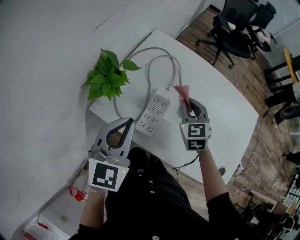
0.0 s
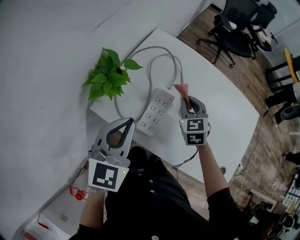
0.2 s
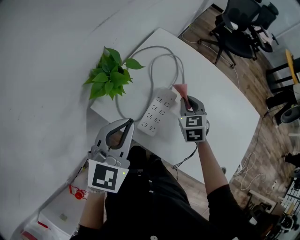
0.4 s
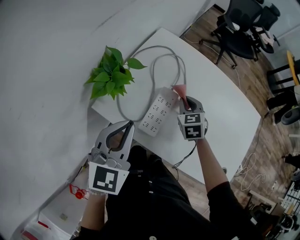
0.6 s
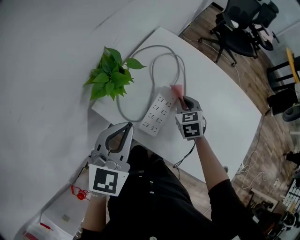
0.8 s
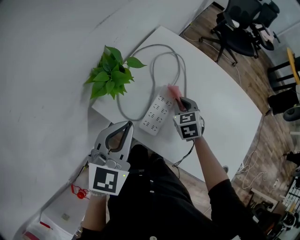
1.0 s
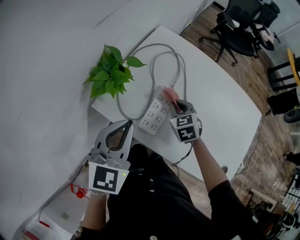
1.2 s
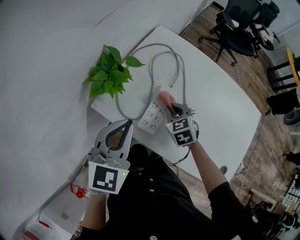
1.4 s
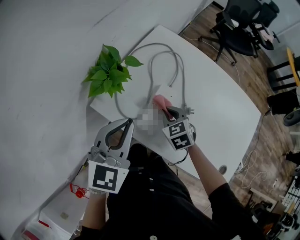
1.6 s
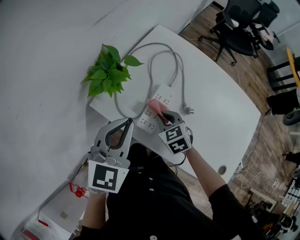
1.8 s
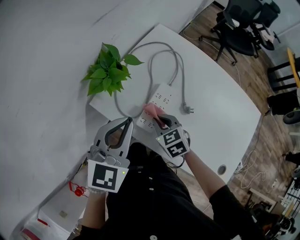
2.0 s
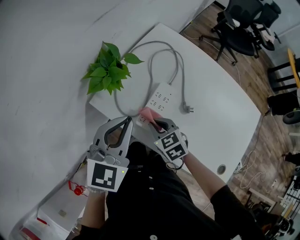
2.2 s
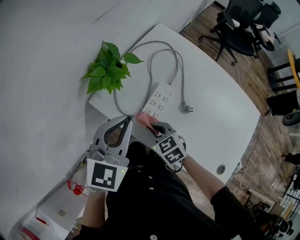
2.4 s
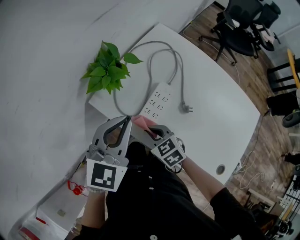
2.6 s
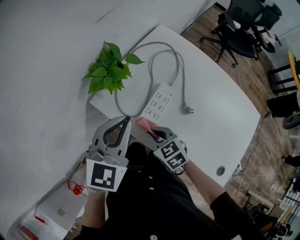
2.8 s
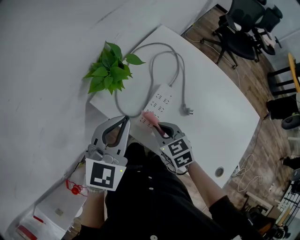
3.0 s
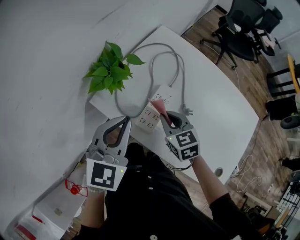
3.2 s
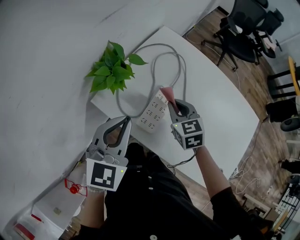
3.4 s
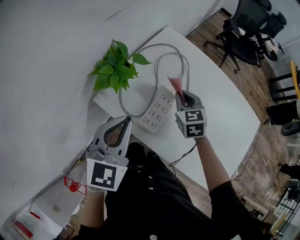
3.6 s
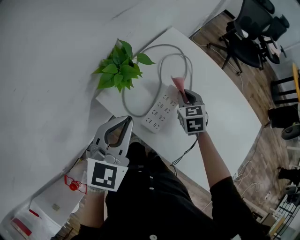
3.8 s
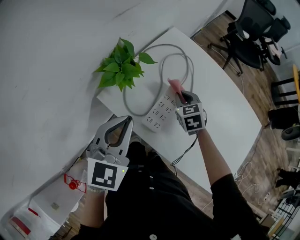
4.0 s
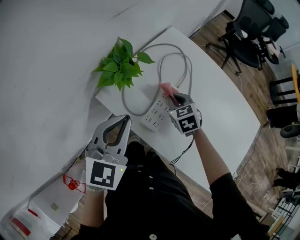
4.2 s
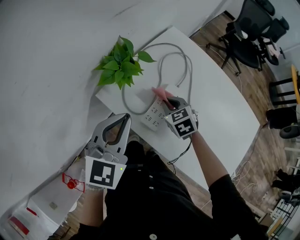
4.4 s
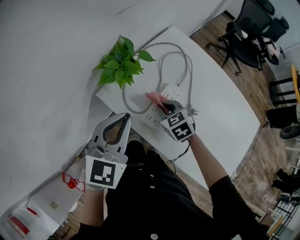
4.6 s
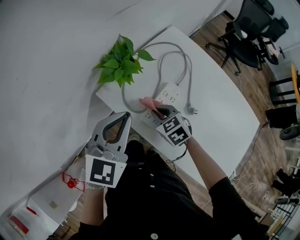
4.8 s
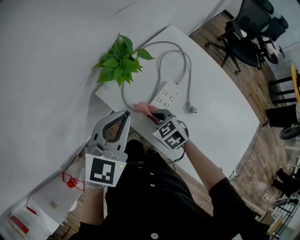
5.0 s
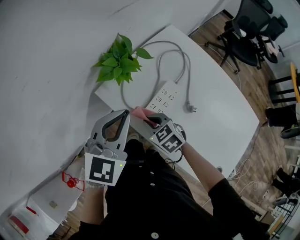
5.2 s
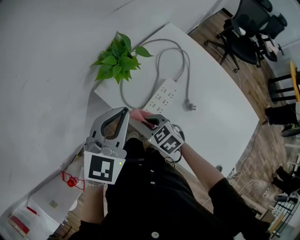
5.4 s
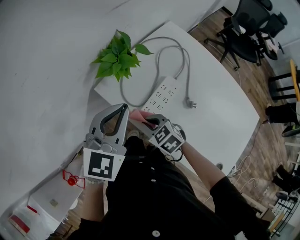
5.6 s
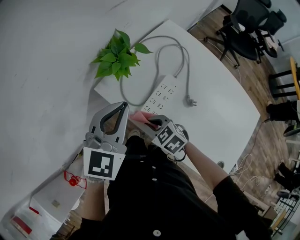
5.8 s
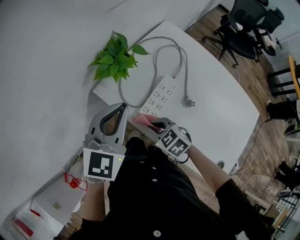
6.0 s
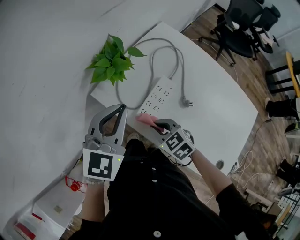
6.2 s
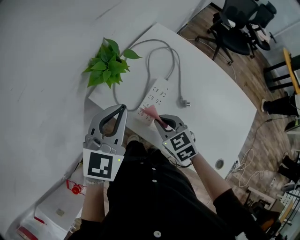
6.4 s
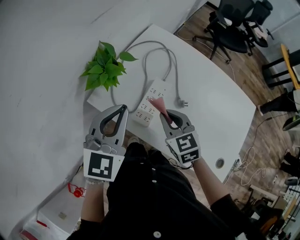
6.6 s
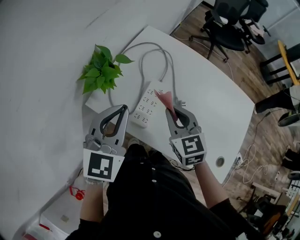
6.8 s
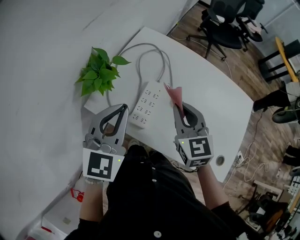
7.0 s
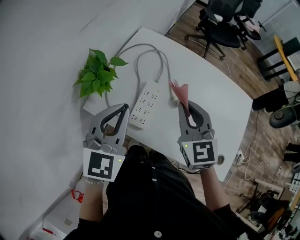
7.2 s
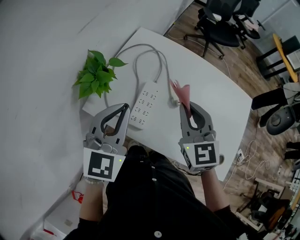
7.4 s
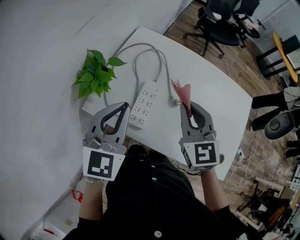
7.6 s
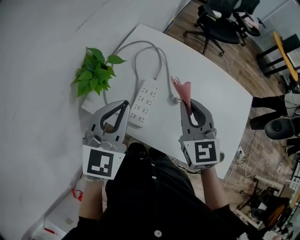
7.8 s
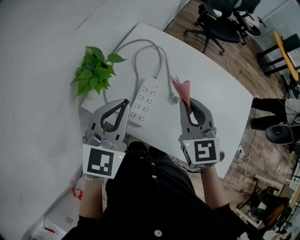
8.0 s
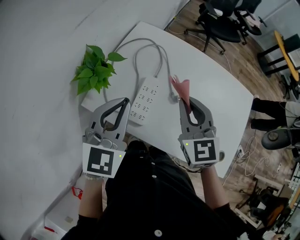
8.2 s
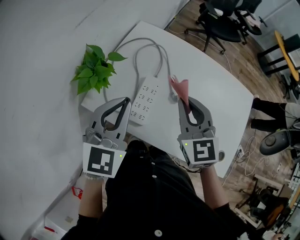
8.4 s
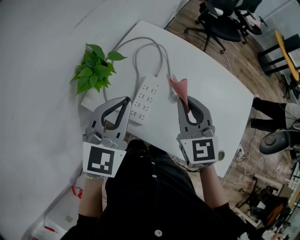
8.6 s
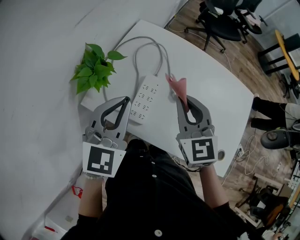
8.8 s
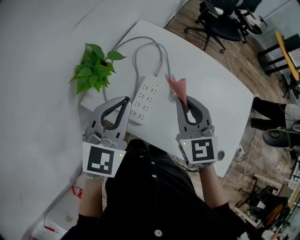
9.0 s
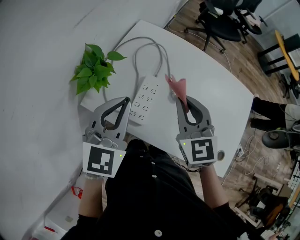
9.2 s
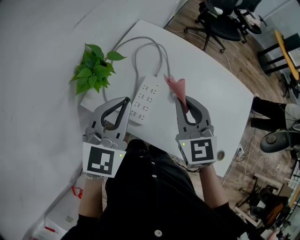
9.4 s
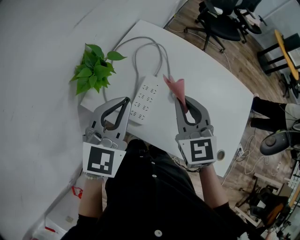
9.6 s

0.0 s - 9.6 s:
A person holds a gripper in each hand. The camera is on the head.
0.0 s - 1.6 s: The right gripper shifts about 15 cm downward, to the left and backward, and rotates roughly 20 degrees.
1.6 s - 3.2 s: The right gripper moves upward, approximately 5 cm, and reaches approximately 10 cm backward, then returns.
3.2 s - 4.8 s: The right gripper goes roughly 10 cm to the left and downward, and changes its angle by roughly 20 degrees.
4.8 s - 6.4 s: The right gripper goes approximately 5 cm backward.
6.4 s - 8.0 s: The left gripper shifts by some 5 cm; the right gripper travels upward and to the right by some 20 cm, and turns by some 40 degrees.
8.0 s - 9.6 s: There are only small adjustments of the grippers.

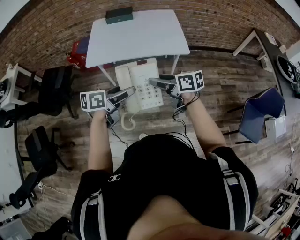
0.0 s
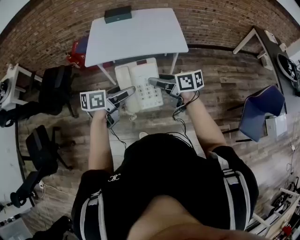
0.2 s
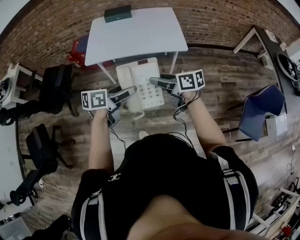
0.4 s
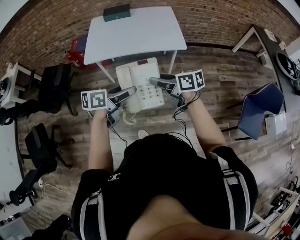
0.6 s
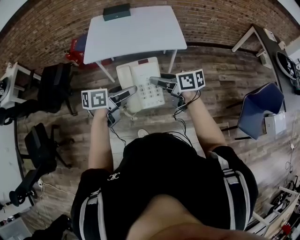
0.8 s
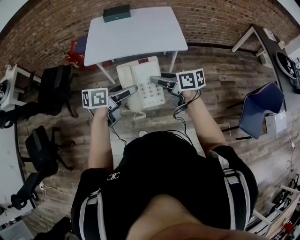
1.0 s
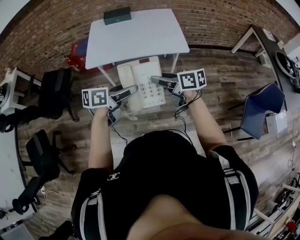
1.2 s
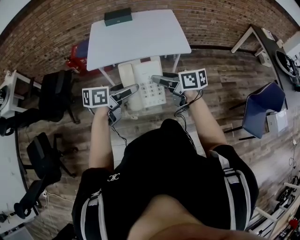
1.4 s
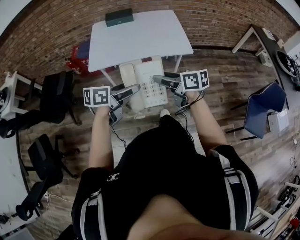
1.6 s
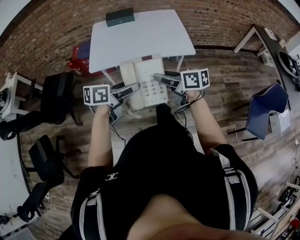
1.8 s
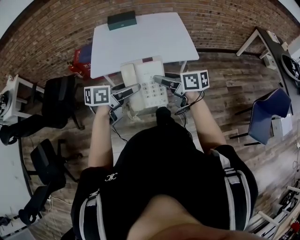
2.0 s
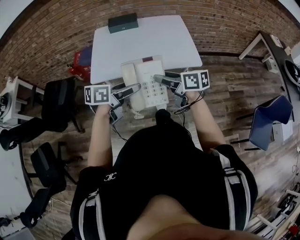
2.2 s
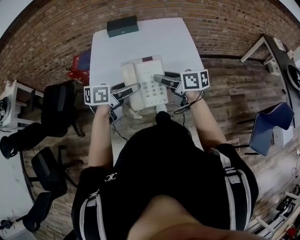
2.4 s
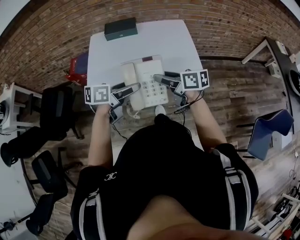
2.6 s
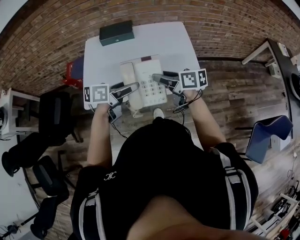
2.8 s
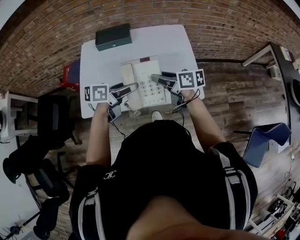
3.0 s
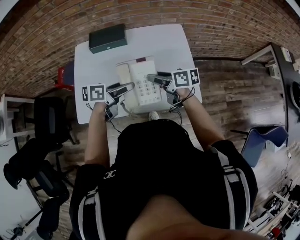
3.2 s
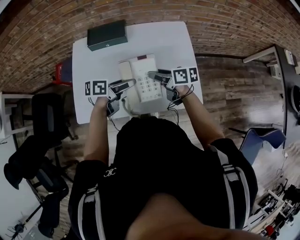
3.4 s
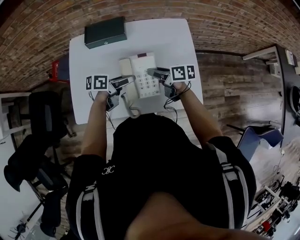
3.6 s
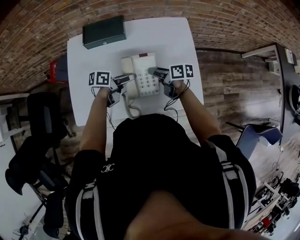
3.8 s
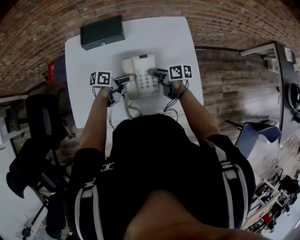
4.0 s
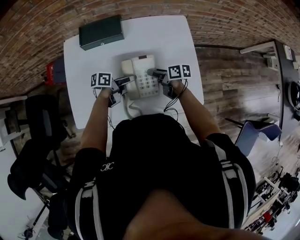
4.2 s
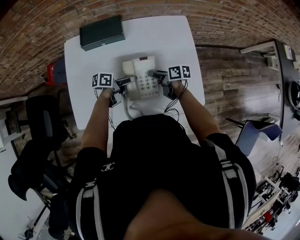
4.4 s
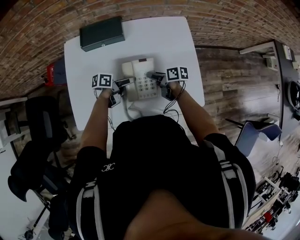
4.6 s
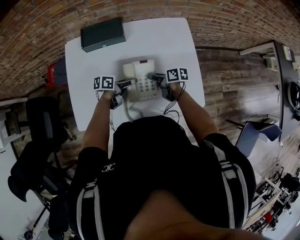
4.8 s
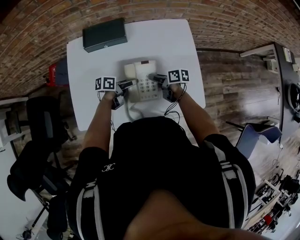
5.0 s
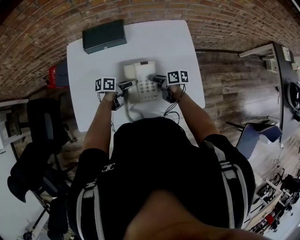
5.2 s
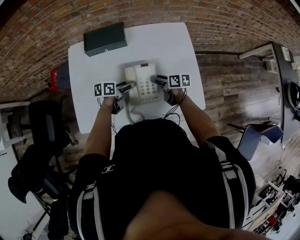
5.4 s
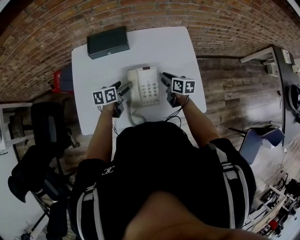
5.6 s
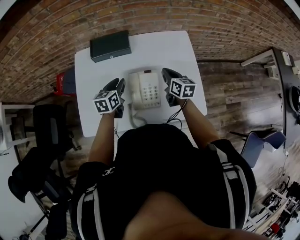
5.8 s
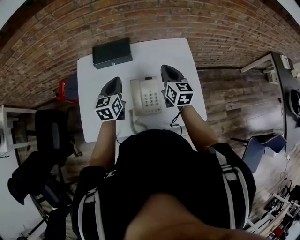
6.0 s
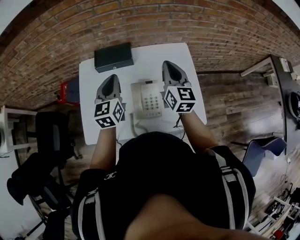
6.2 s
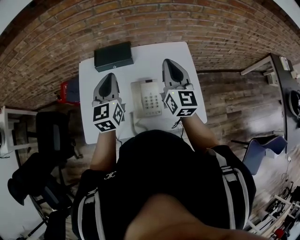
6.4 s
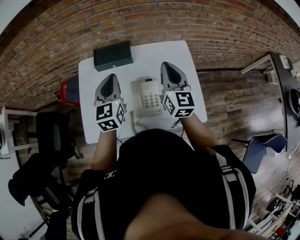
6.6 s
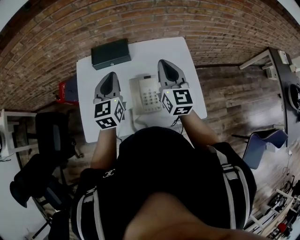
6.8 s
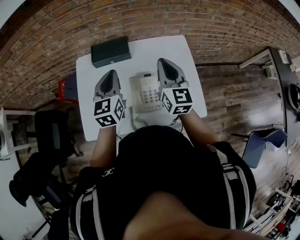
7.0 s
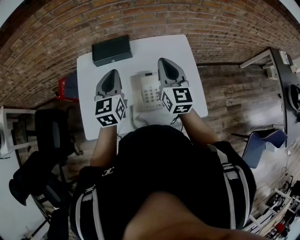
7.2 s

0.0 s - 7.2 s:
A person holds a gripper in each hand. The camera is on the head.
0.0 s - 1.4 s: The grippers make only small movements.
1.4 s - 2.8 s: The grippers both shift forward by approximately 35 cm.
2.8 s - 4.4 s: The left gripper changes place by roughly 30 cm, and changes its angle by roughly 30 degrees. The right gripper heads downward, covering roughly 20 cm, and rotates about 30 degrees.
4.4 s - 5.8 s: Both grippers travel together upward, some 10 cm. The right gripper rotates about 40 degrees, and closes its fingers; the left gripper turns by roughly 50 degrees, and closes its fingers.
5.8 s - 7.2 s: Both grippers travel together upward, about 20 cm. The left gripper turns by approximately 30 degrees. Meanwhile the right gripper rotates some 30 degrees.

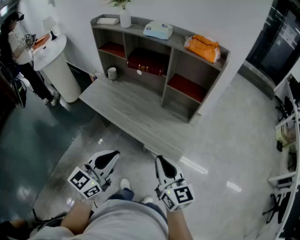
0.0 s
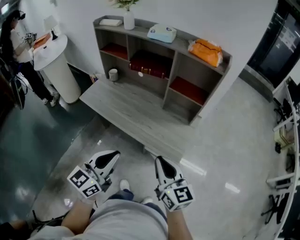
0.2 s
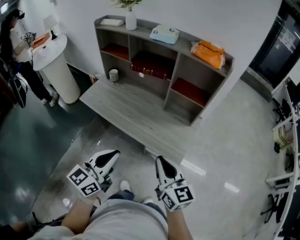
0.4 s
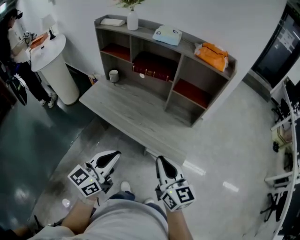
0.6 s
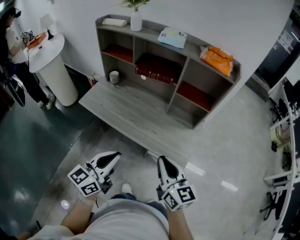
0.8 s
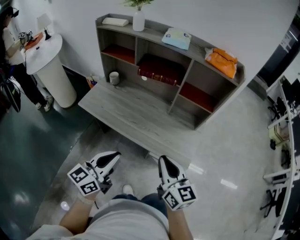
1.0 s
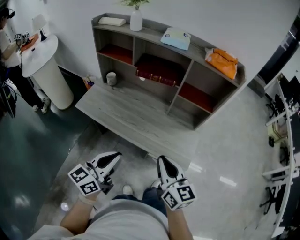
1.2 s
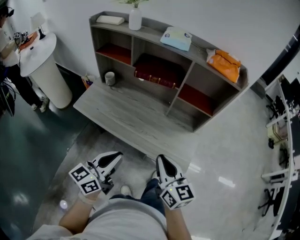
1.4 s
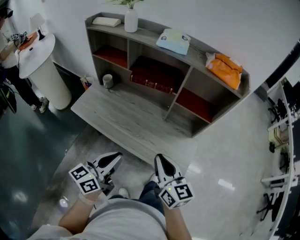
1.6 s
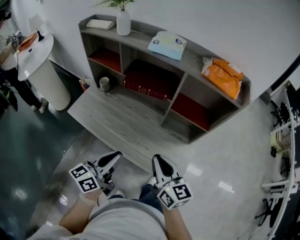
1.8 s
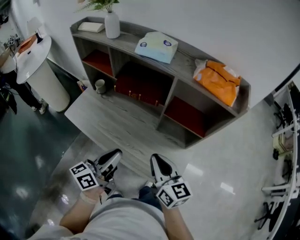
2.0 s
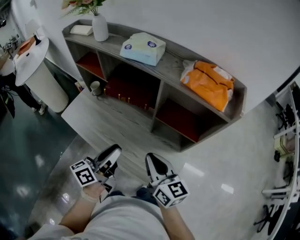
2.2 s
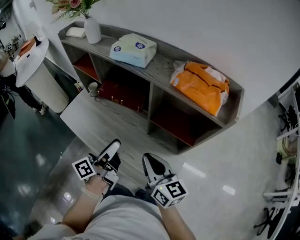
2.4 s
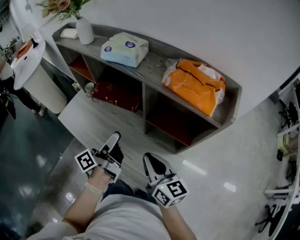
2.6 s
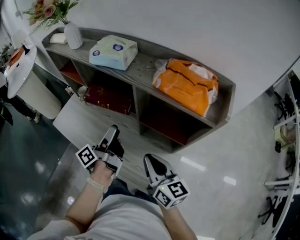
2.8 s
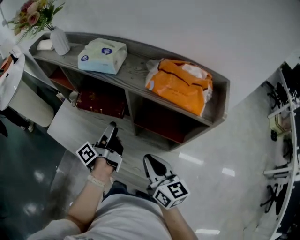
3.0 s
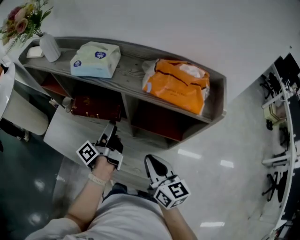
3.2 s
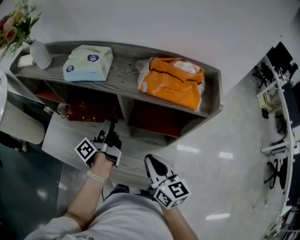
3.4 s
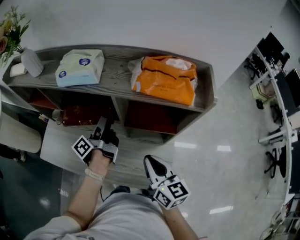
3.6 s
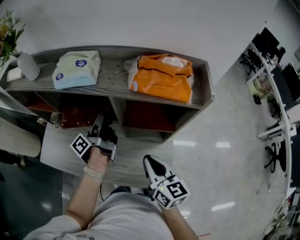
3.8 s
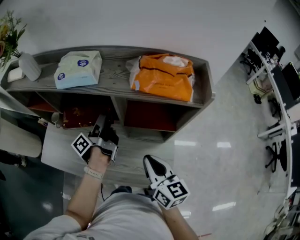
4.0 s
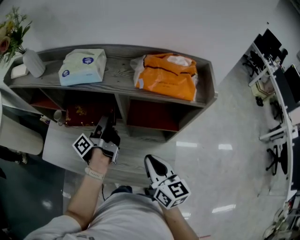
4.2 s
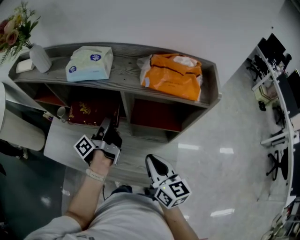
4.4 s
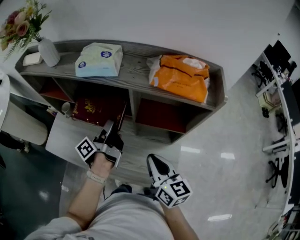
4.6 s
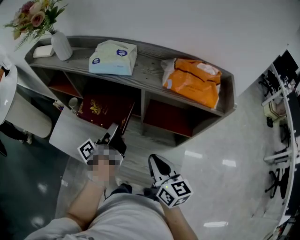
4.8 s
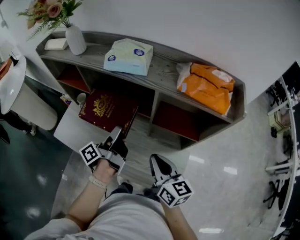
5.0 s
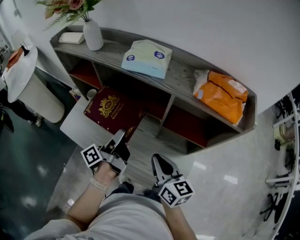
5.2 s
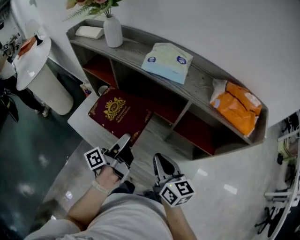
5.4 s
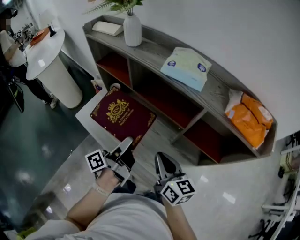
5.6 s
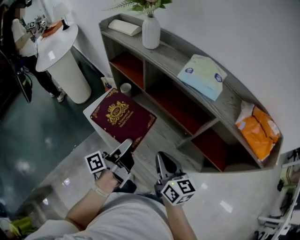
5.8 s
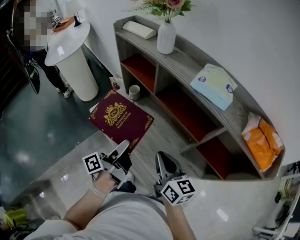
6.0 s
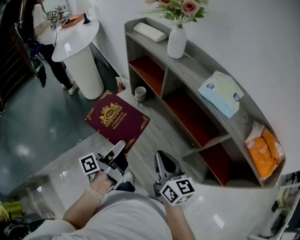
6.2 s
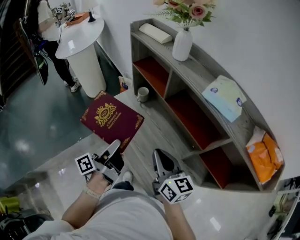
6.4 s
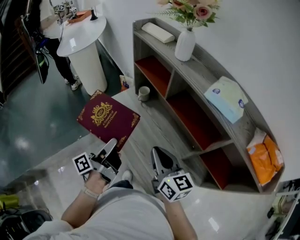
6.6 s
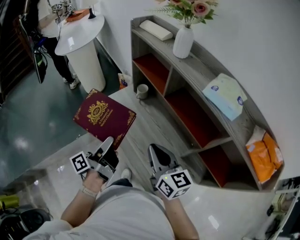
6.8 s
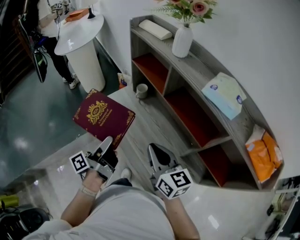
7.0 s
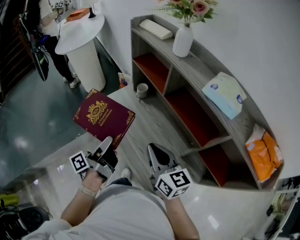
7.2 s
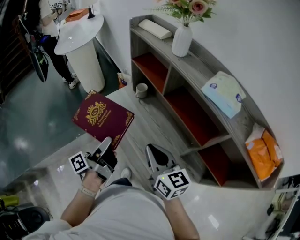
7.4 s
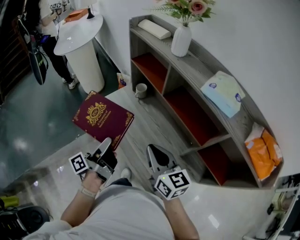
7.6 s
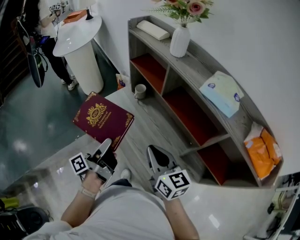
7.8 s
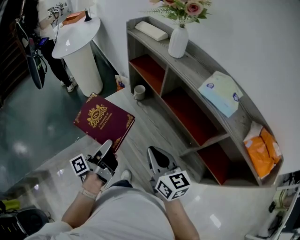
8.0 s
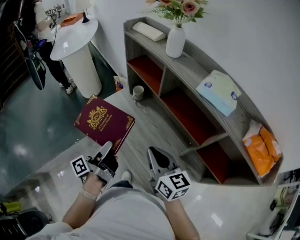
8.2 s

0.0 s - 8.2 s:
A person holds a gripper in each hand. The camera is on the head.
0.0 s - 1.6 s: The right gripper ends up roughly 15 cm from where it was.
1.6 s - 3.2 s: The right gripper changes place by about 25 cm.
3.2 s - 5.0 s: The right gripper ends up approximately 5 cm from where it was.
5.0 s - 6.6 s: The right gripper ends up some 20 cm from where it was, and swivels about 40 degrees.
